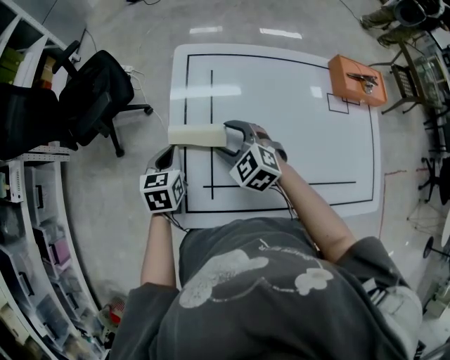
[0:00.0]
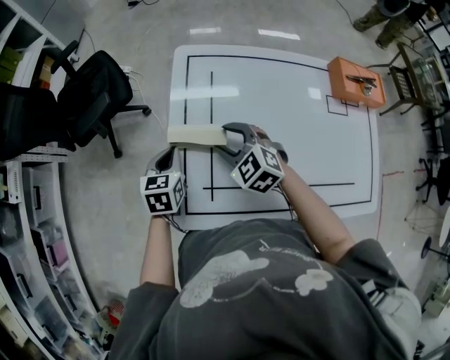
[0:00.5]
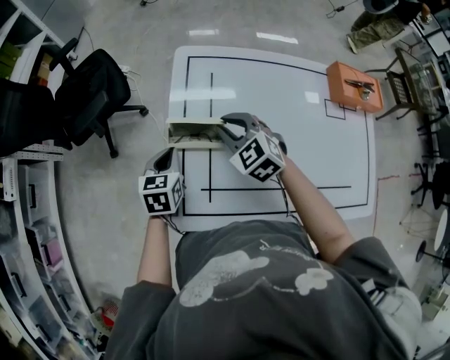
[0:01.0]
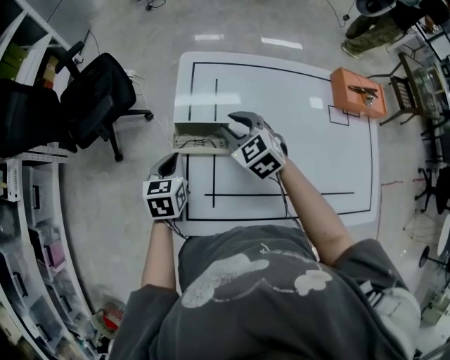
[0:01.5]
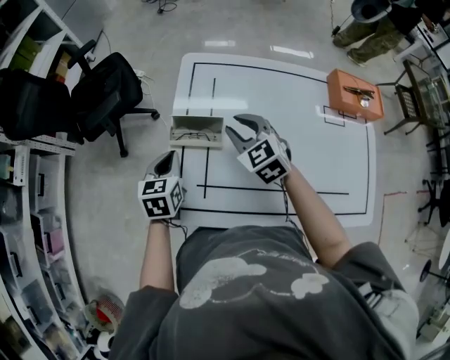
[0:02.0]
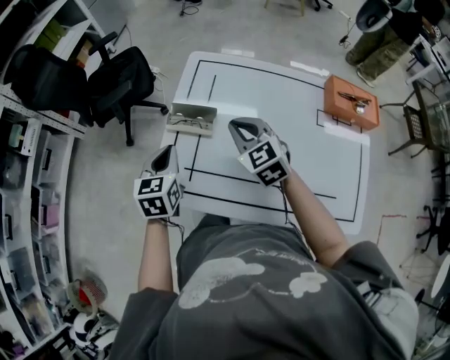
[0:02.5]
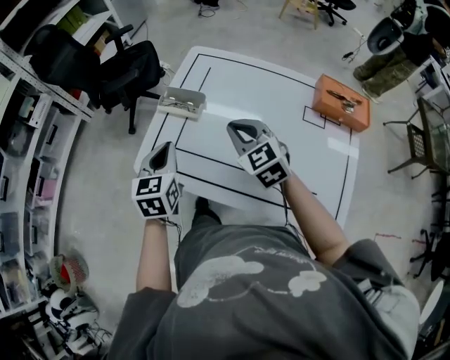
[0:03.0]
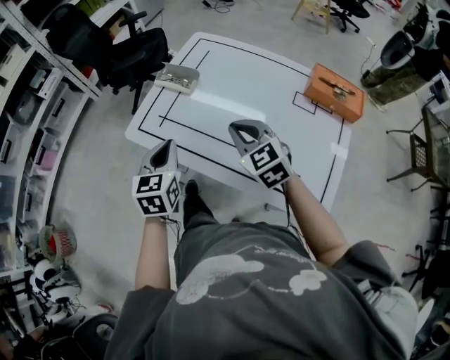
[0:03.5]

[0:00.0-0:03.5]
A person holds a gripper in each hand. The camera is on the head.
0:00.0 to 0:02.0: The right gripper travels upward by approximately 5 cm, and closes.
0:02.0 to 0:03.5: Both grippers move backward, approximately 25 cm. The left gripper turns by roughly 20 degrees. The right gripper rotates about 20 degrees.

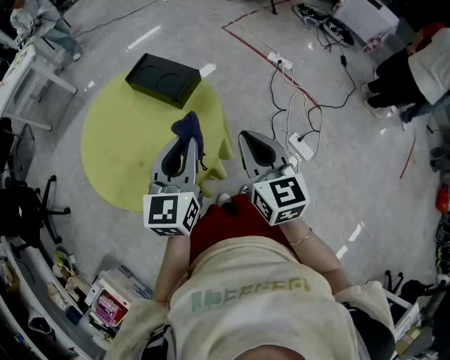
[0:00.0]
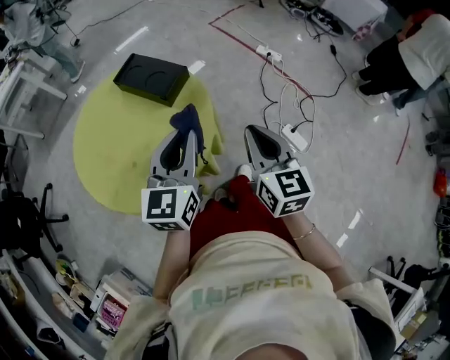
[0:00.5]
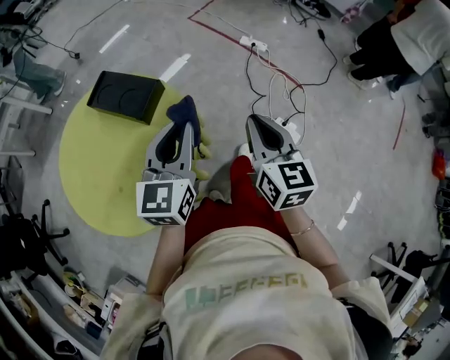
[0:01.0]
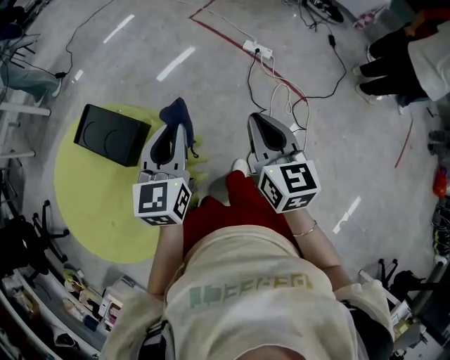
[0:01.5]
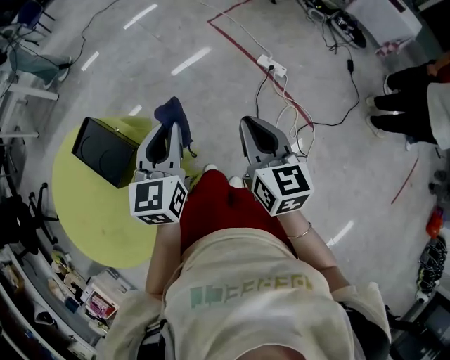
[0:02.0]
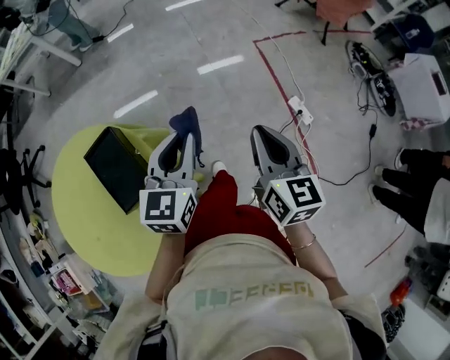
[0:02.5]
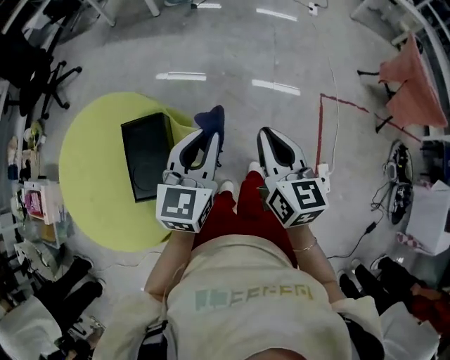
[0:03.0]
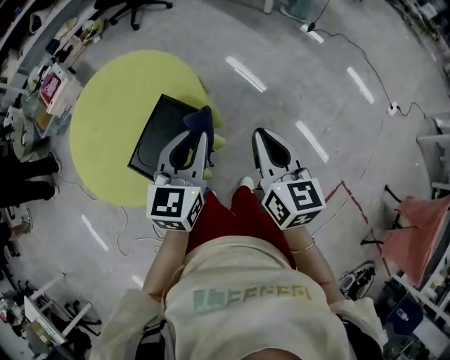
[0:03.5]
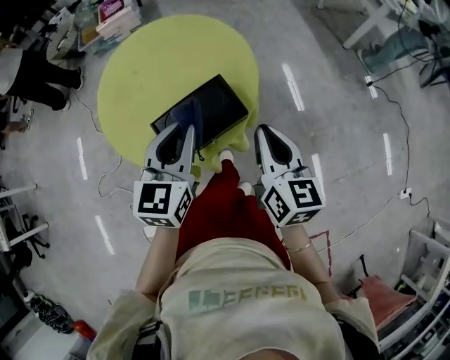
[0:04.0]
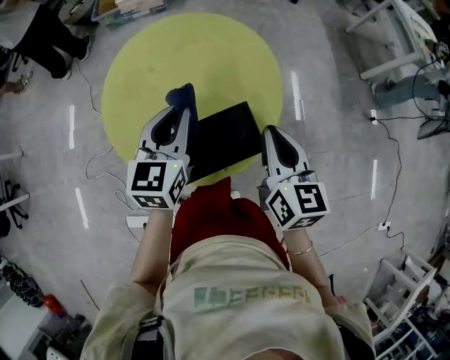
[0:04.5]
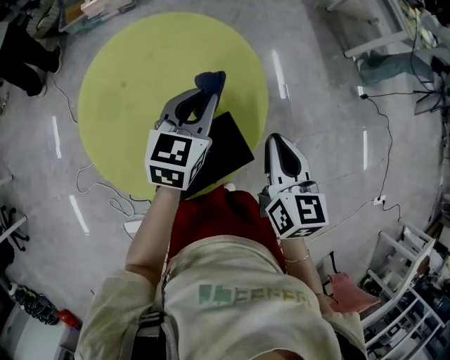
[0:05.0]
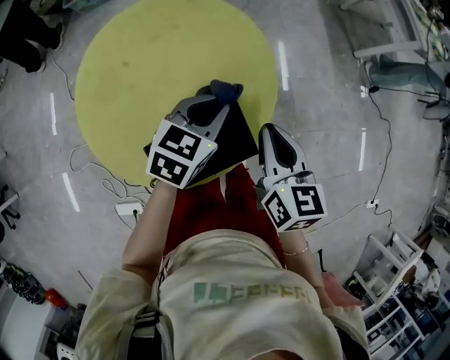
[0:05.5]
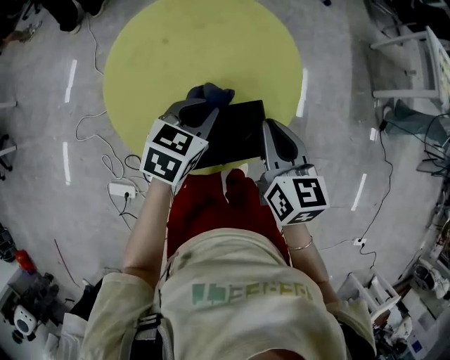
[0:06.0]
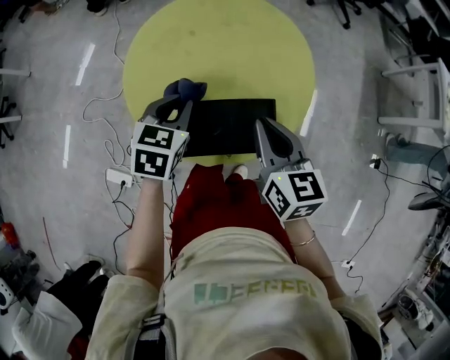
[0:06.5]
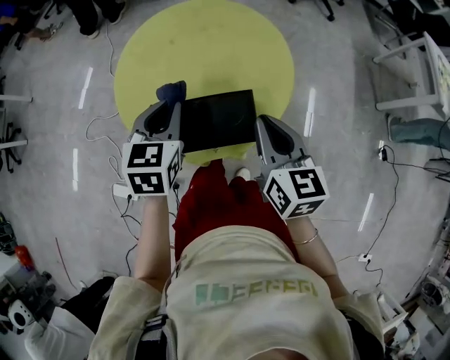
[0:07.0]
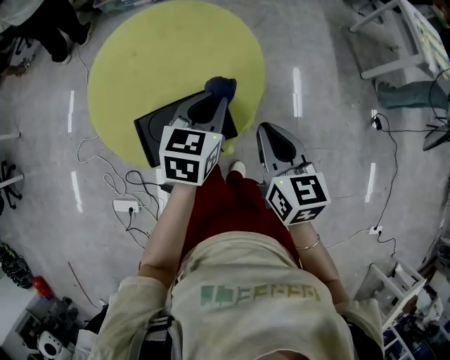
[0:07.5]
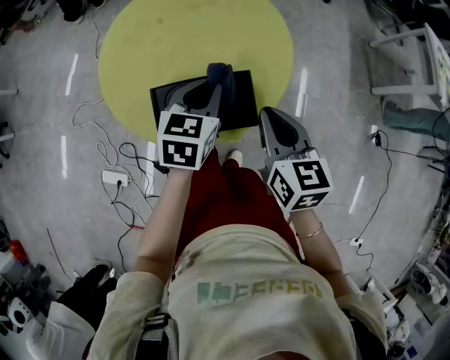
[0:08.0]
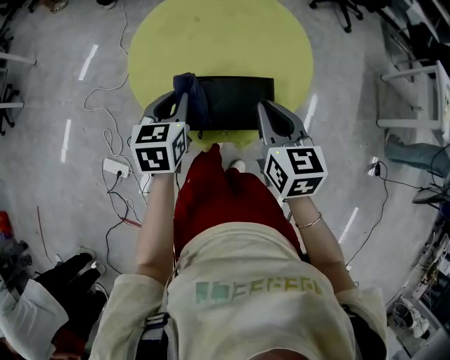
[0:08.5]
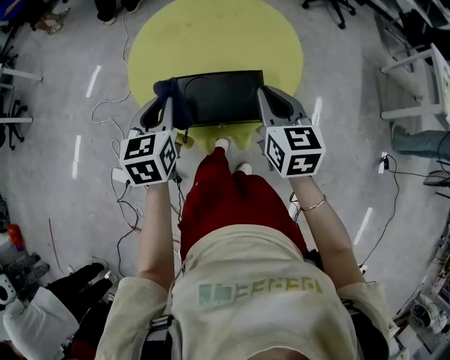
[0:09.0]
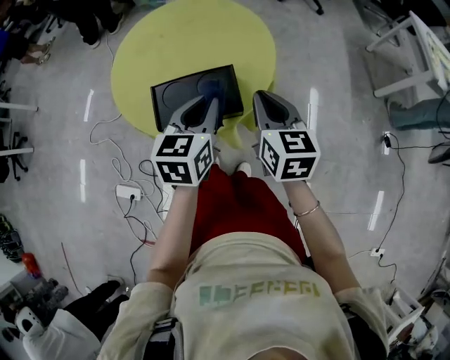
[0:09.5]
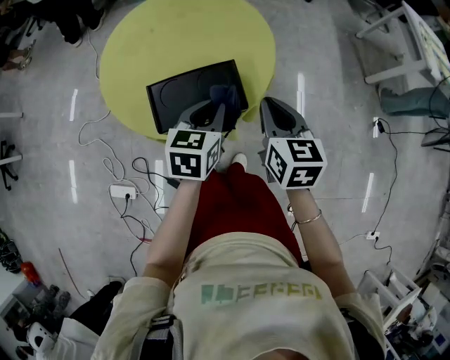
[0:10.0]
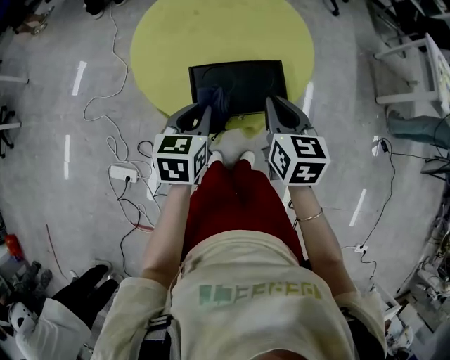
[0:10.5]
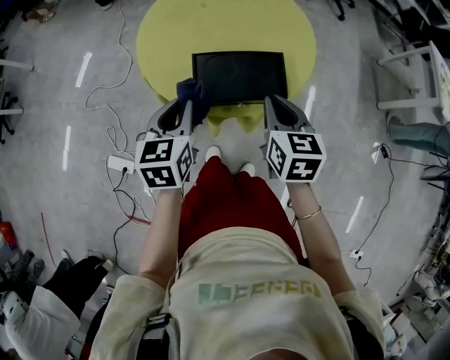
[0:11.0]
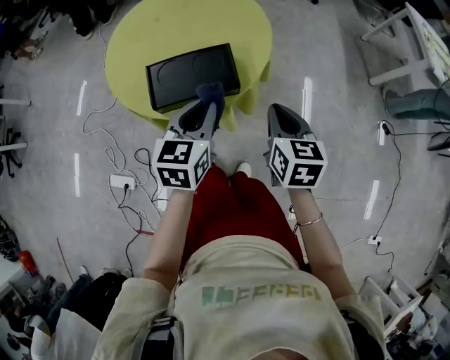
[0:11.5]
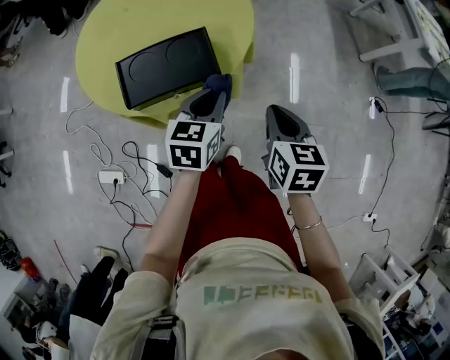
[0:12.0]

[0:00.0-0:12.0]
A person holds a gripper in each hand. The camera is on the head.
0:00.0 to 0:02.0: The two grippers travel together, forward and to the right, roughly 50 cm.
0:02.0 to 0:04.0: The left gripper moves some 40 cm, and turns by about 110 degrees. Meanwhile the right gripper changes place by about 60 cm, and changes its angle by some 110 degrees.
0:04.0 to 0:06.0: The left gripper heads forward, downward and to the left, covering roughly 20 cm, and changes its angle by approximately 20 degrees. Meanwhile the right gripper heads forward and to the left, covering some 20 cm, and changes its angle by some 20 degrees.
0:06.0 to 0:08.0: The left gripper goes left and right, roughly 20 cm each way, reversing 2 times, and swivels approximately 20 degrees. The right gripper moves left and right over roughly 15 cm, changing direction 2 times.
0:08.0 to 0:10.0: The right gripper shifts by approximately 5 cm. The left gripper heads backward, covering some 10 cm, and goes to the left and returns, about 15 cm each way.
0:10.0 to 0:12.0: The left gripper reaches roughly 20 cm to the left, then returns; the right gripper goes about 15 cm to the right, backward and downward.

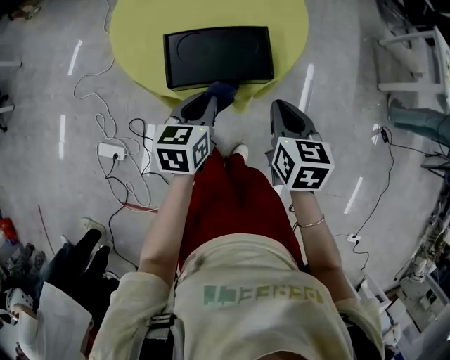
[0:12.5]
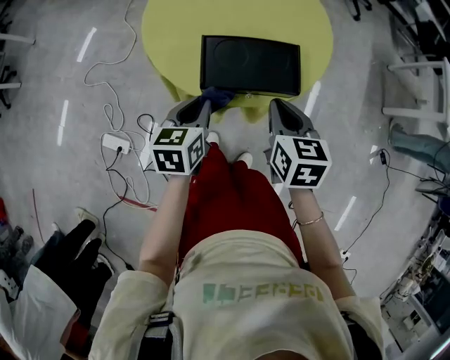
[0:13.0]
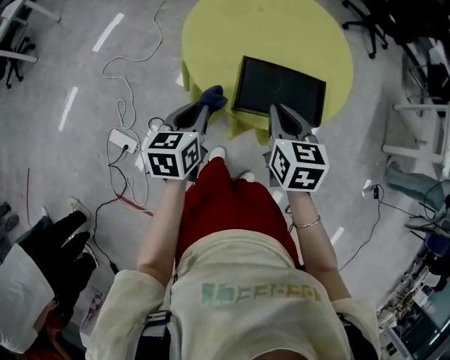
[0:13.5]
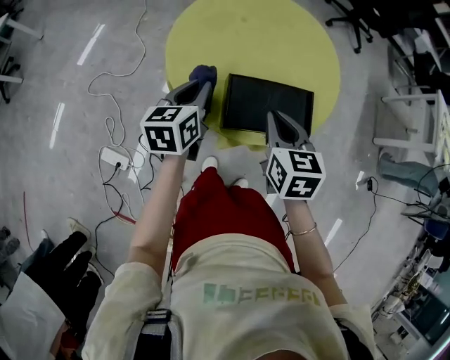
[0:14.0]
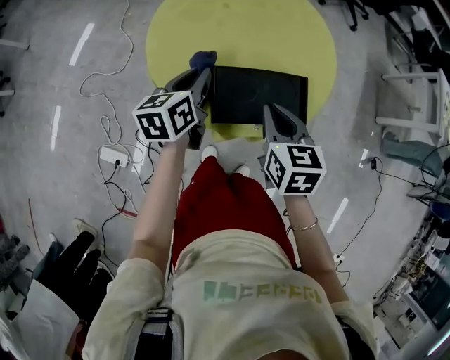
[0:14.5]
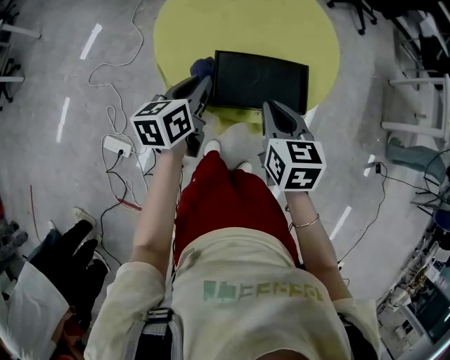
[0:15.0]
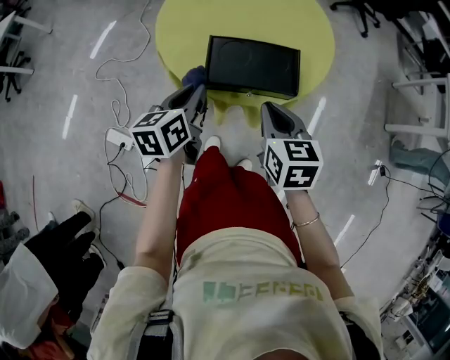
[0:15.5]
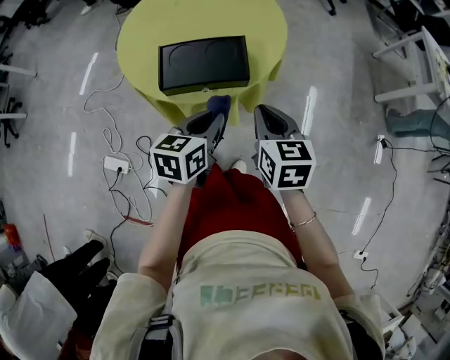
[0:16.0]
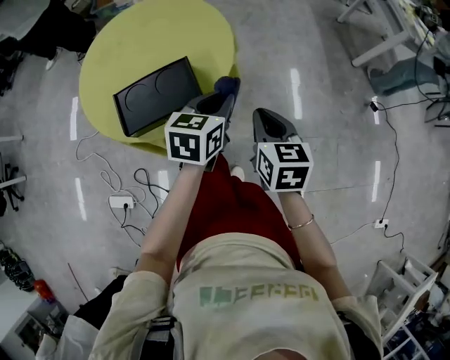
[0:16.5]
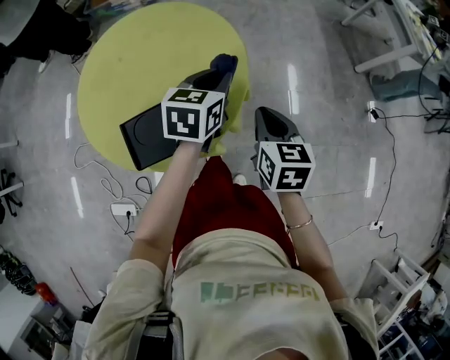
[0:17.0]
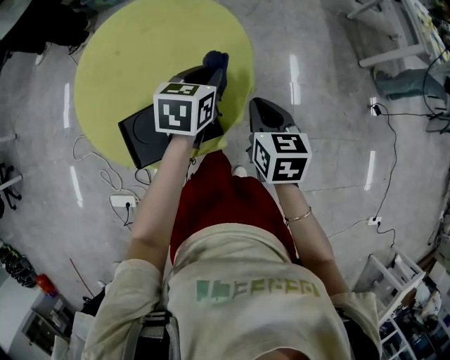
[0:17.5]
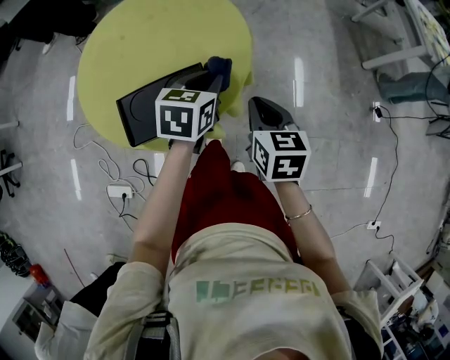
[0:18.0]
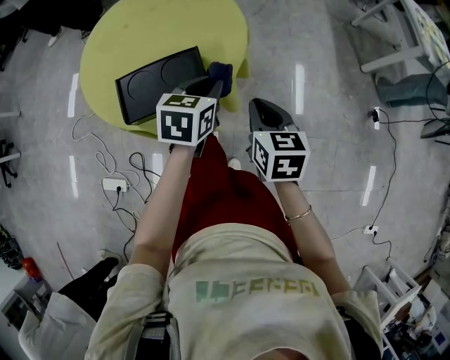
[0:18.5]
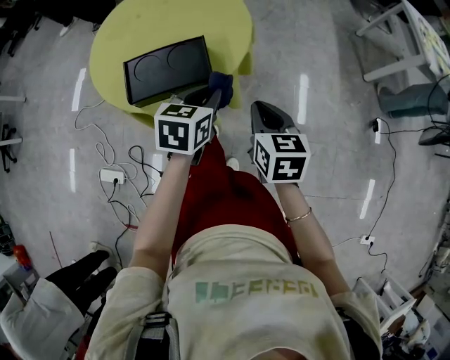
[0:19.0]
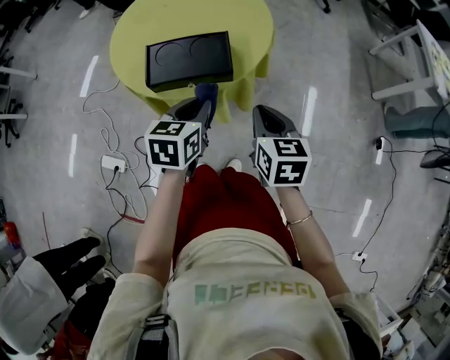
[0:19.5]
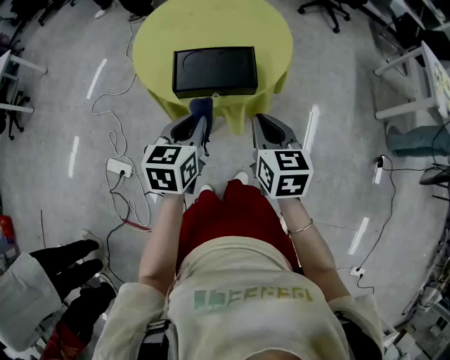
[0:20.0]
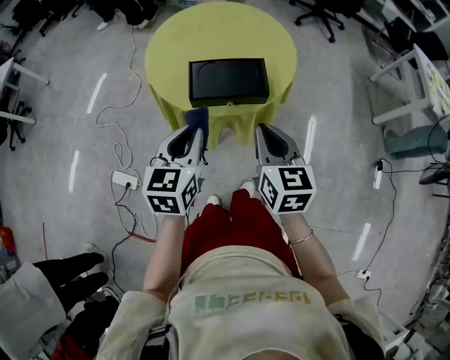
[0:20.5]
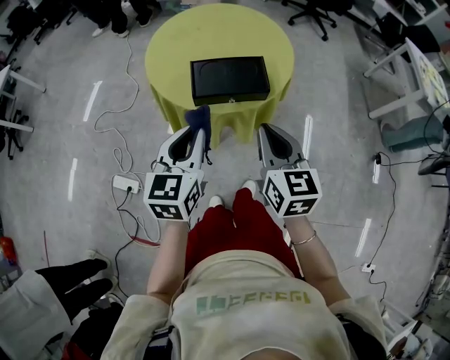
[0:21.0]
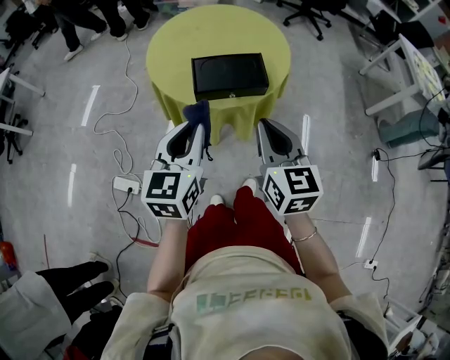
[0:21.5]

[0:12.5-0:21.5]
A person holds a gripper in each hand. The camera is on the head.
0:12.5 to 0:14.5: Both grippers move to the left and forward, approximately 20 cm.
0:14.5 to 0:17.0: The left gripper changes place by about 35 cm, and changes its angle by some 40 degrees; the right gripper ends up some 25 cm from where it was, and changes its angle by some 20 degrees.
0:17.0 to 0:19.5: The left gripper goes some 30 cm backward. The right gripper moves backward, approximately 20 cm.
0:19.5 to 0:21.5: Both grippers move to the left, upward and backward, some 20 cm. The left gripper changes its angle by some 20 degrees.

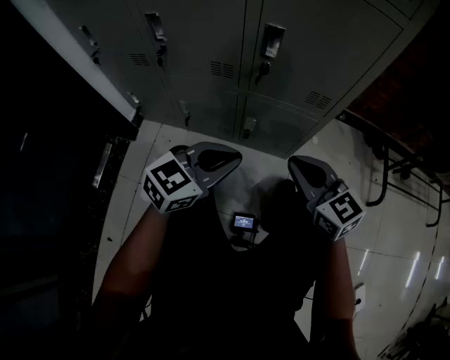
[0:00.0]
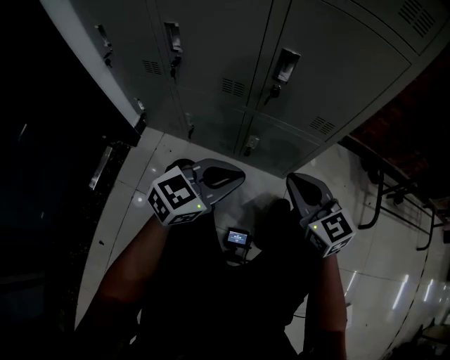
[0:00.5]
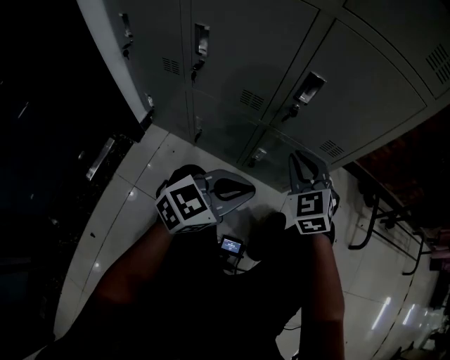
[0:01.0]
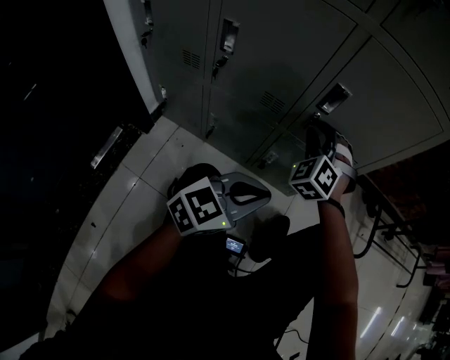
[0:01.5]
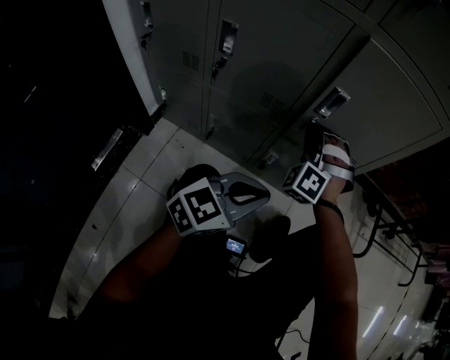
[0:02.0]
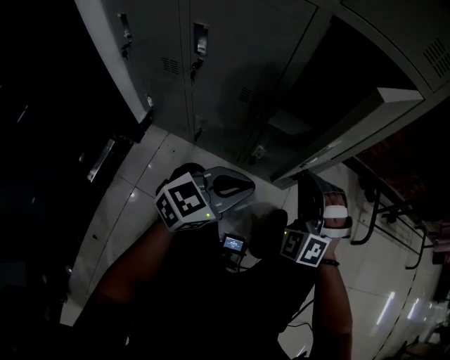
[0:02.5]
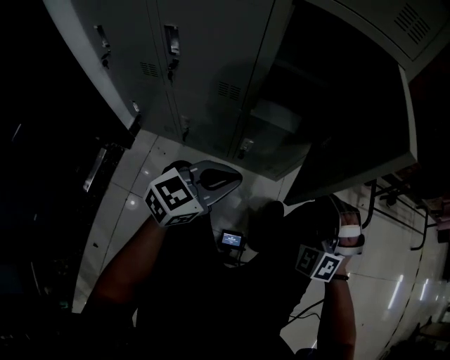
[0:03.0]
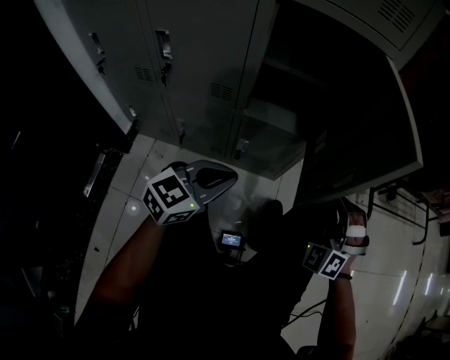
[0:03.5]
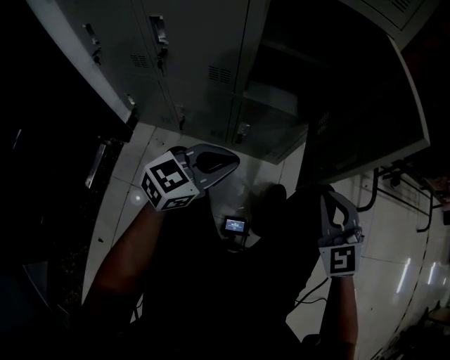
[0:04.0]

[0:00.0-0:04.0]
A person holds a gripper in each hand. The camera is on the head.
0:00.0 to 0:02.0: The right gripper heads forward and to the left, covering roughly 20 cm, and twists roughly 70 degrees counterclockwise, seen from behind.
0:02.0 to 0:04.0: The right gripper travels to the right and backward by some 30 cm, and rolls clockwise, seen from behind, by roughly 50 degrees.
